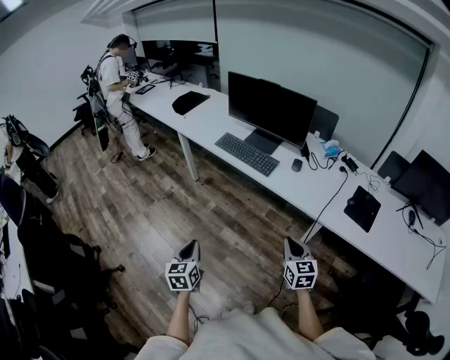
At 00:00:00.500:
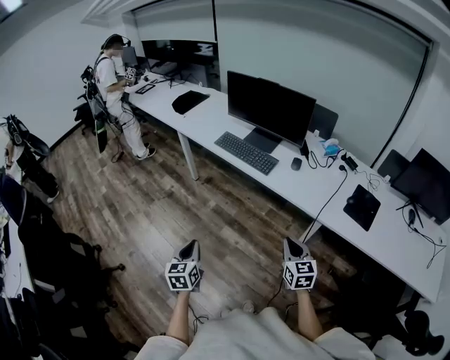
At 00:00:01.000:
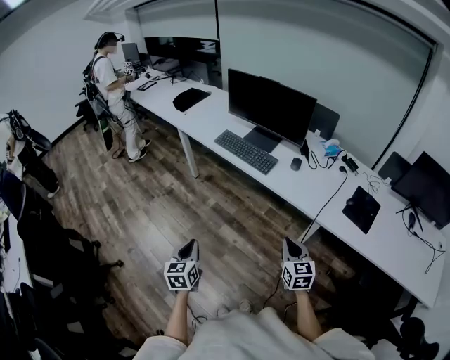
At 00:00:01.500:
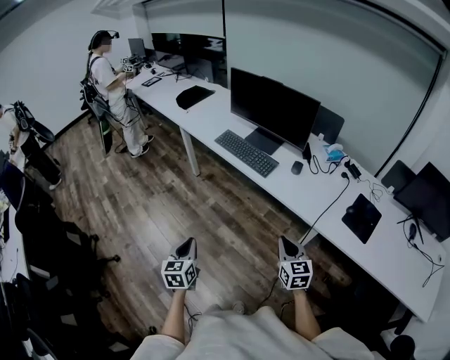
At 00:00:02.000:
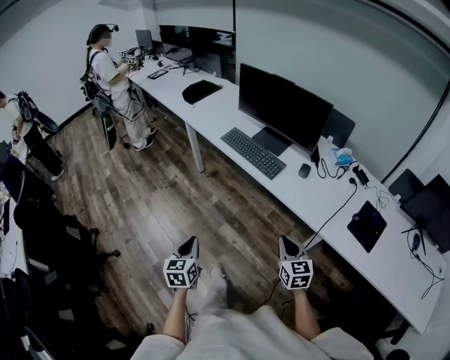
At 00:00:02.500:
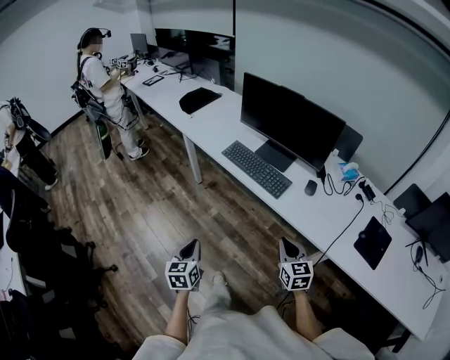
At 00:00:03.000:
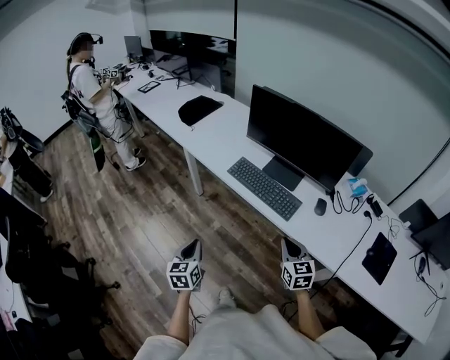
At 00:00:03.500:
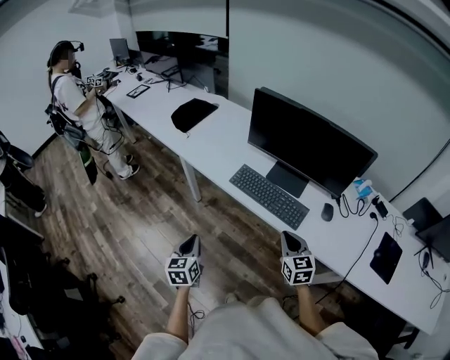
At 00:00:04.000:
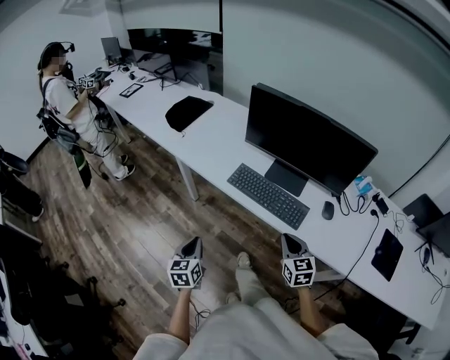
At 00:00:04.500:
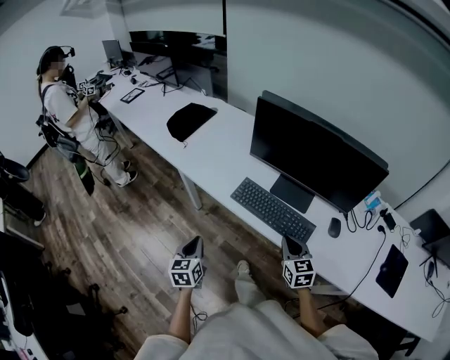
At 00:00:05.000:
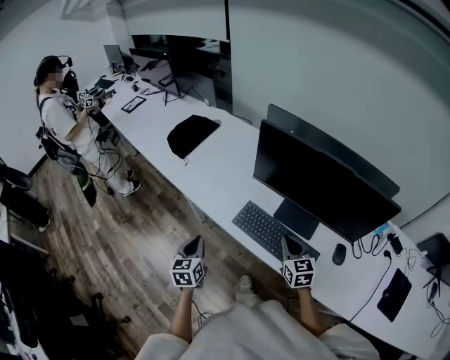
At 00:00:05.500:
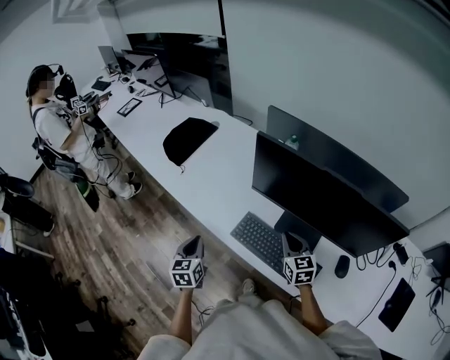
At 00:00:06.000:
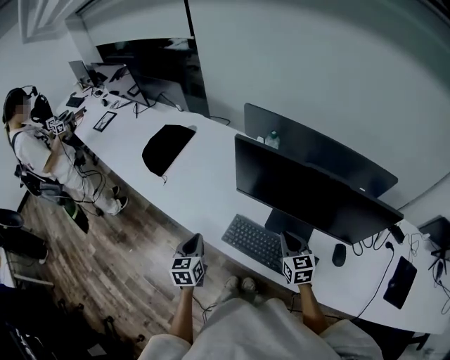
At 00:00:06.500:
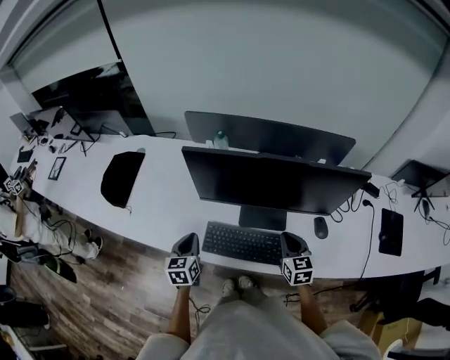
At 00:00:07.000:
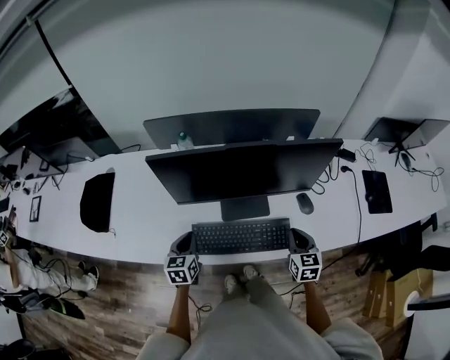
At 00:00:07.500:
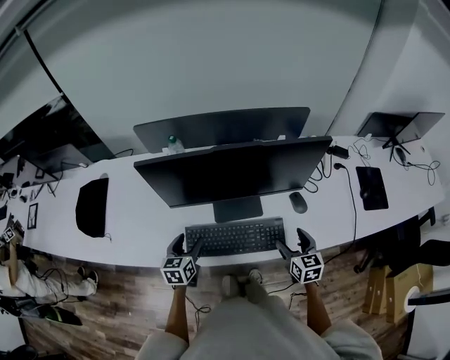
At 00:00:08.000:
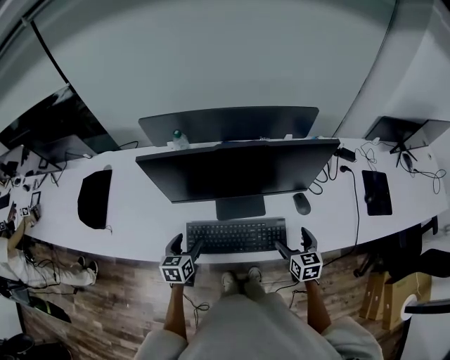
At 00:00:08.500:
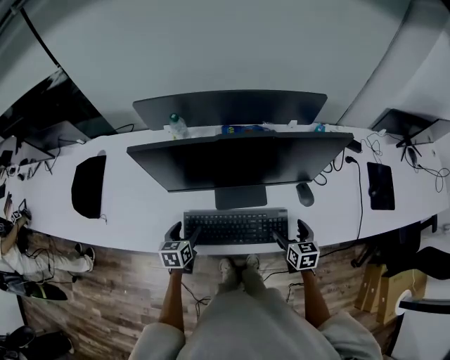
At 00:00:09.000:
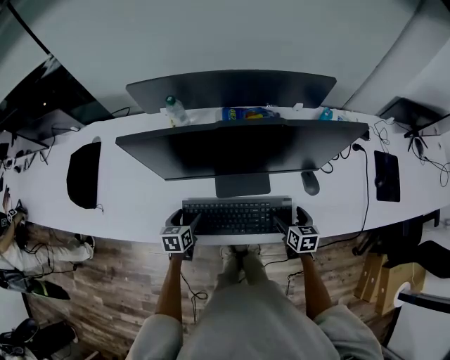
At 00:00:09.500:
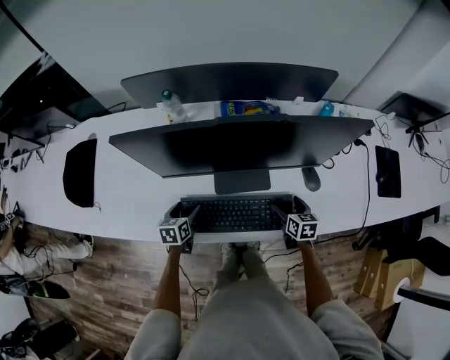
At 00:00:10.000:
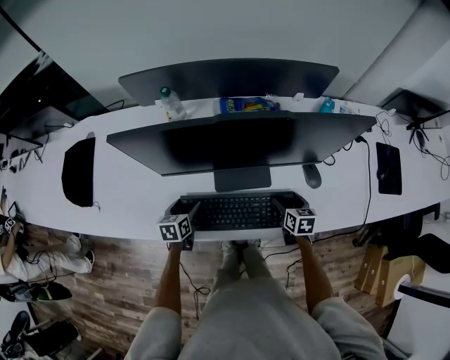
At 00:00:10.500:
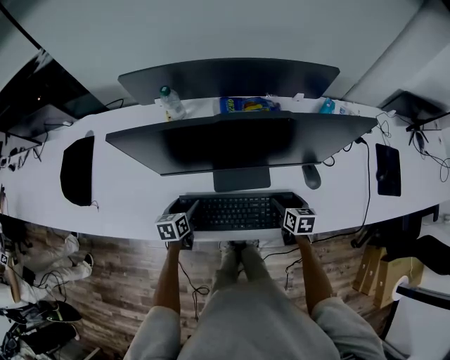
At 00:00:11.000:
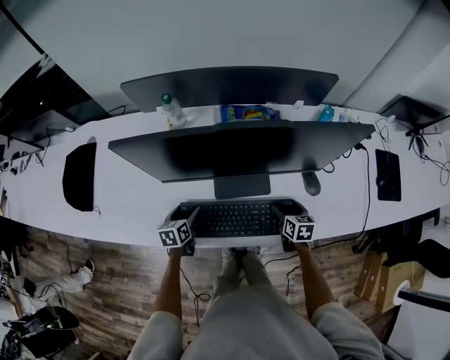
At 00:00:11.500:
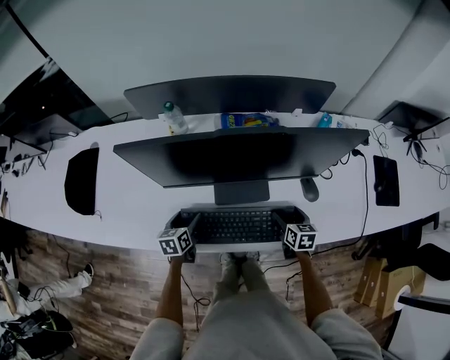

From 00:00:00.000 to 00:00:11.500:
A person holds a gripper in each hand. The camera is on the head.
From 00:00:00.000 to 00:00:02.000: The right gripper moves forward, roughly 5 cm. The left gripper moves about 5 cm.
From 00:00:02.000 to 00:00:04.000: Both grippers travel together forward, roughly 35 cm.
From 00:00:04.000 to 00:00:06.000: Both grippers travel together forward, about 30 cm.
From 00:00:06.000 to 00:00:07.500: The left gripper shifts by approximately 15 cm, rotates roughly 40 degrees, and opens up. Meanwhile the right gripper shifts by some 20 cm, changes its angle by approximately 40 degrees, and opens up.
From 00:00:07.500 to 00:00:09.500: The right gripper moves downward and forward, about 15 cm, and changes its angle by some 20 degrees. The left gripper shifts roughly 15 cm downward.
From 00:00:09.500 to 00:00:11.500: The grippers make only small movements.

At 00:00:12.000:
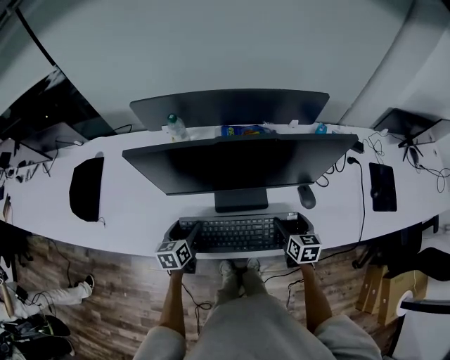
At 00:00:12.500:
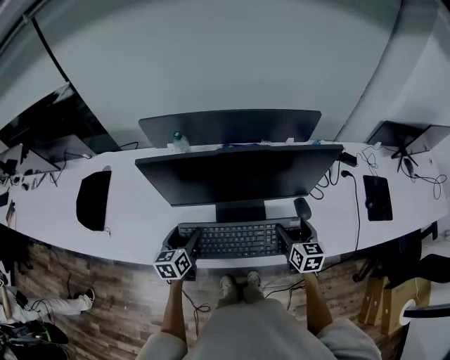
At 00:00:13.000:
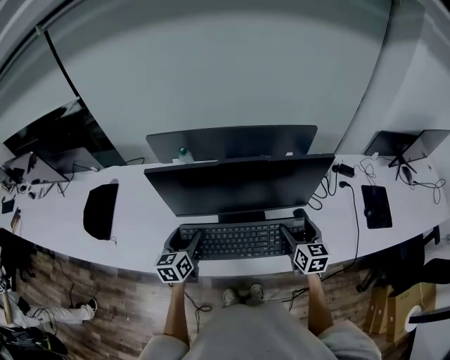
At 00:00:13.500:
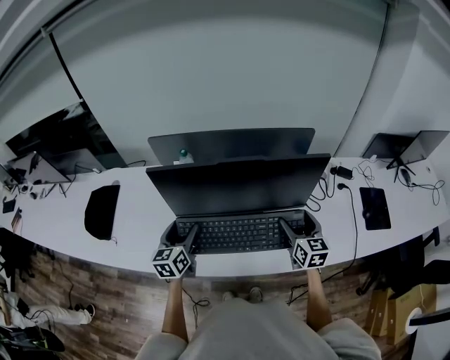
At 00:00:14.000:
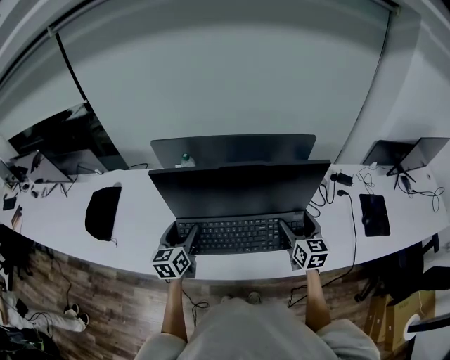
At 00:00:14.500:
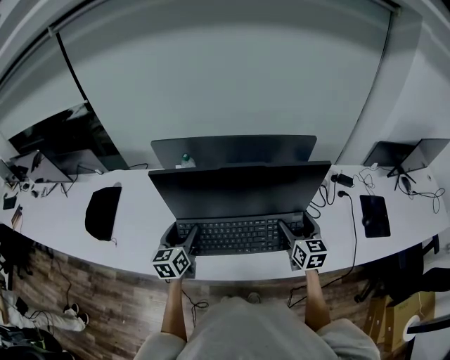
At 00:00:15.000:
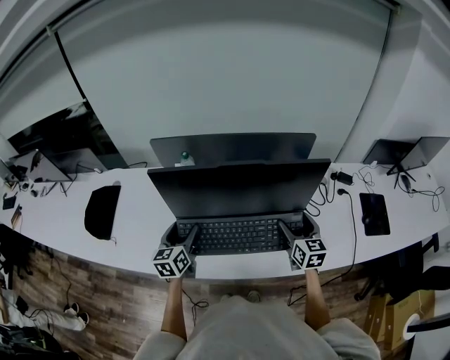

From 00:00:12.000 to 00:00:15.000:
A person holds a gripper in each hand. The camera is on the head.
From 00:00:12.000 to 00:00:13.500: The two grippers go some 15 cm upward. The left gripper changes its angle by approximately 20 degrees. The right gripper swivels about 20 degrees.
From 00:00:13.500 to 00:00:15.000: Neither gripper changes place.

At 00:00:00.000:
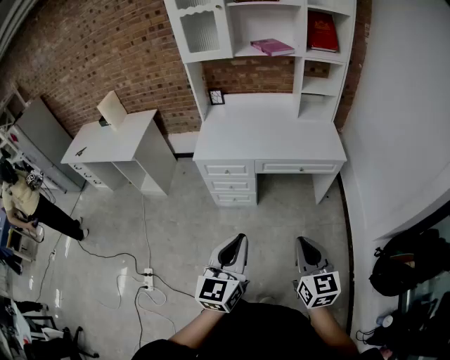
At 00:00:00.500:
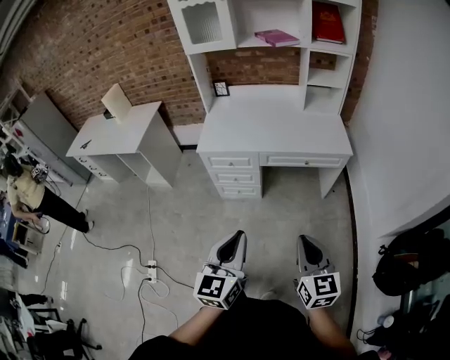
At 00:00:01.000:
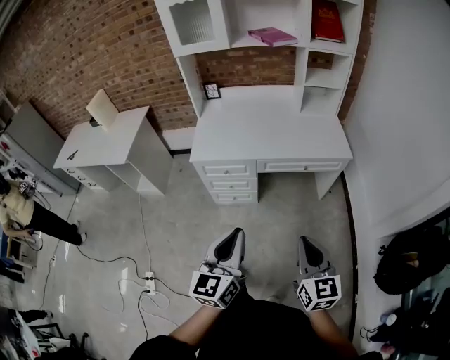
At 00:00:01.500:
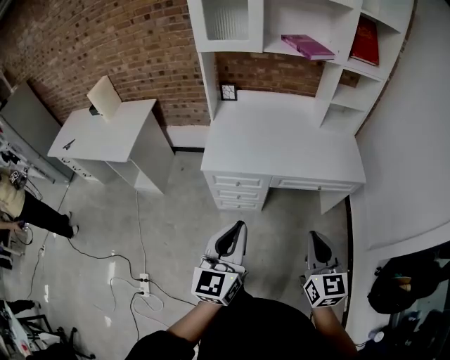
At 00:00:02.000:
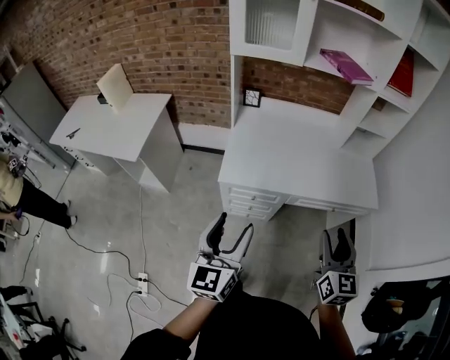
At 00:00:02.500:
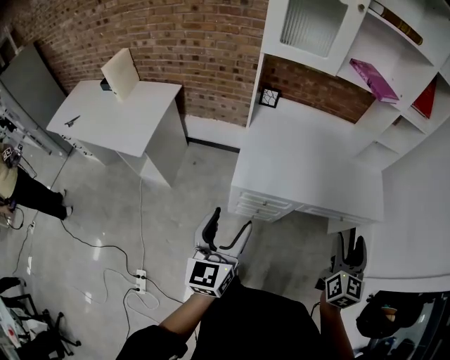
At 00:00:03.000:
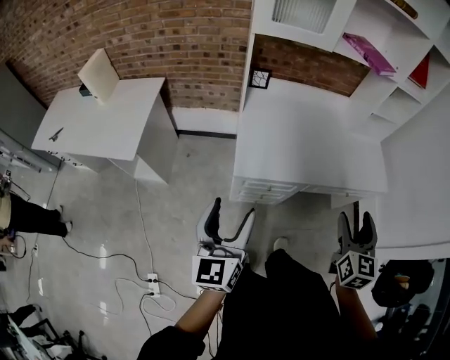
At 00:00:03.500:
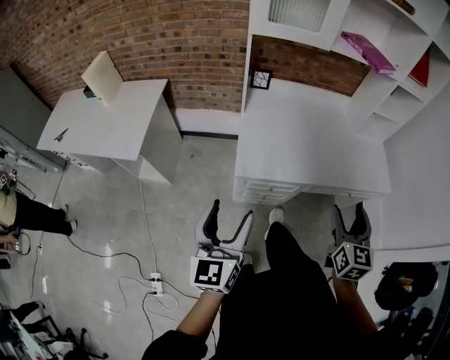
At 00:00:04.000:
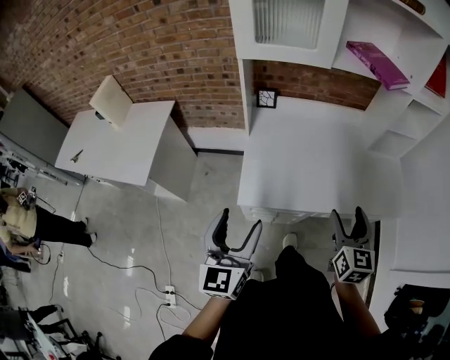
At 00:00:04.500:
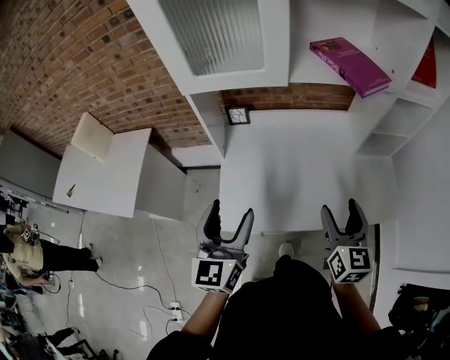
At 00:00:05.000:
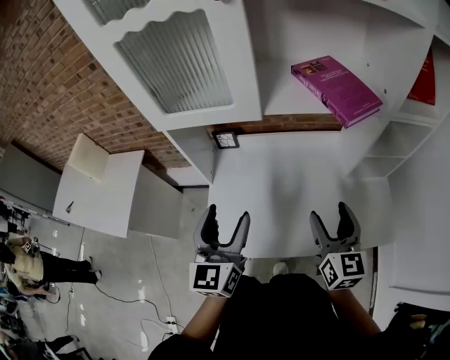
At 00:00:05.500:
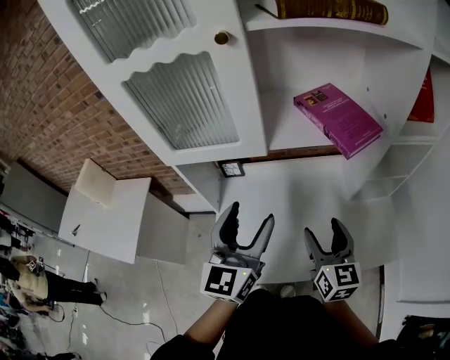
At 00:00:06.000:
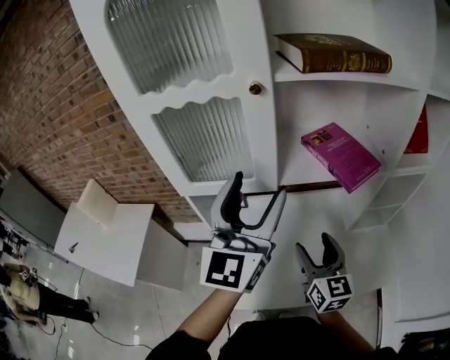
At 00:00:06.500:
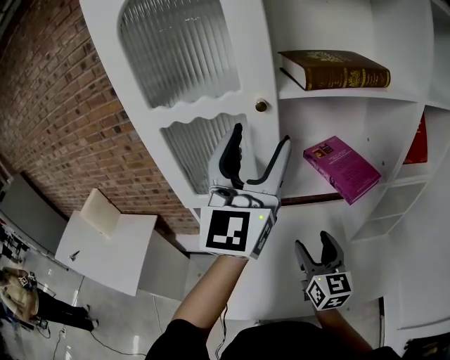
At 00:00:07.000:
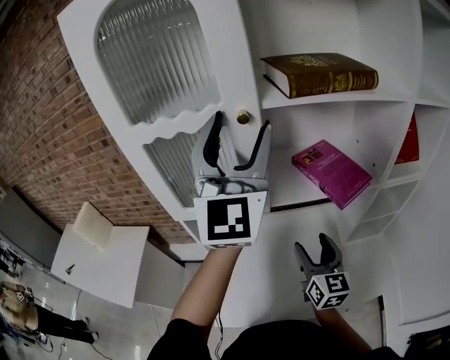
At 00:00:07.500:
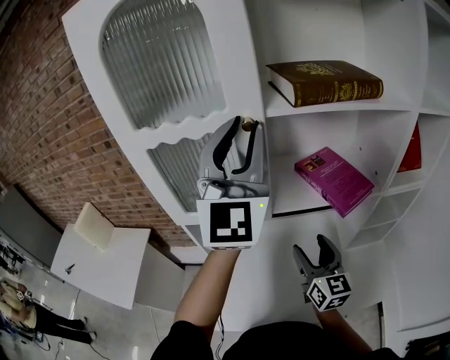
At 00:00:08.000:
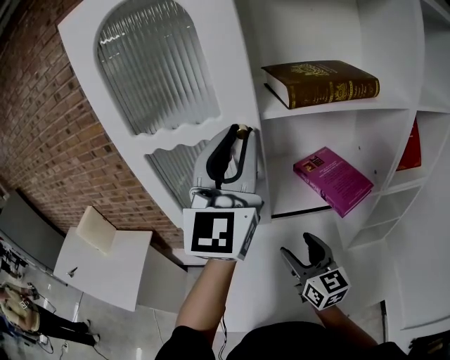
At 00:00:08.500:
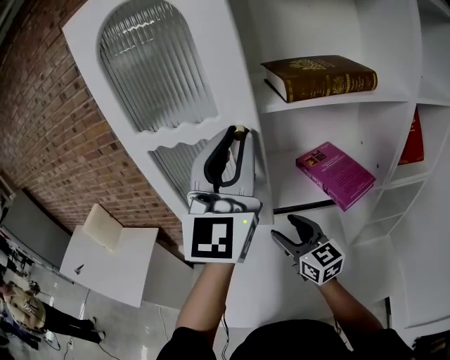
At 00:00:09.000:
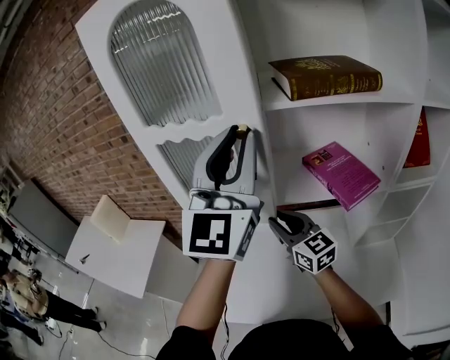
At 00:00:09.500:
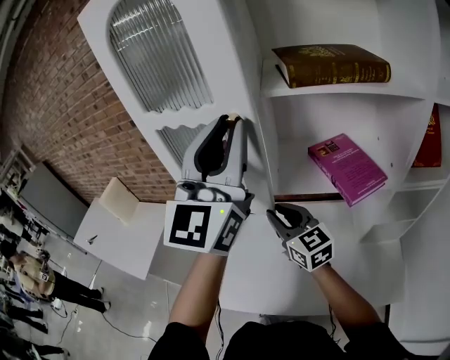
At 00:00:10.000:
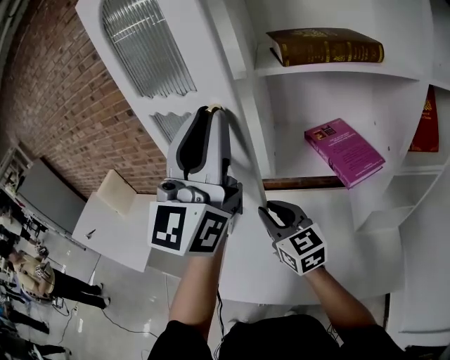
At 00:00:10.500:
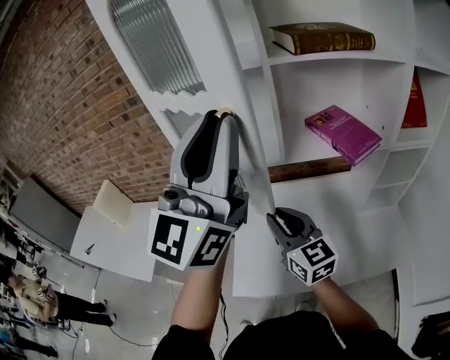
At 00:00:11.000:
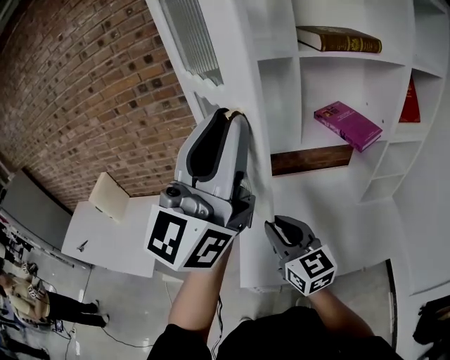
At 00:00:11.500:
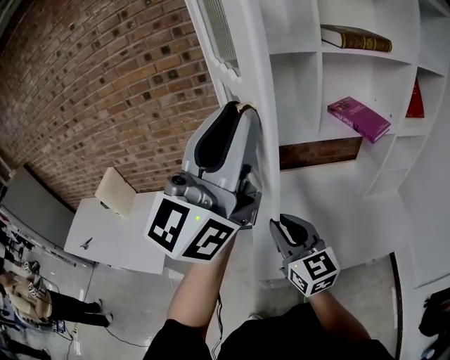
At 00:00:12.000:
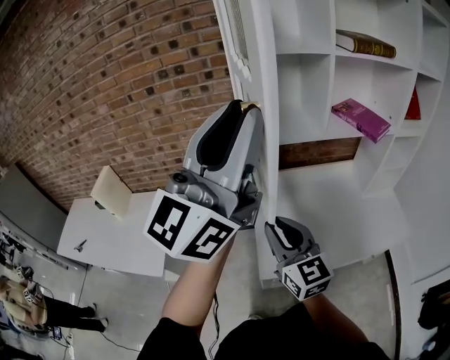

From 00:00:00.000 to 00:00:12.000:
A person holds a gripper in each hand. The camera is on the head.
From 00:00:00.000 to 00:00:02.000: The grippers both shift forward and to the left by roughly 40 cm. The left gripper opens up, while the right gripper opens its fingers.
From 00:00:02.000 to 00:00:04.000: The right gripper shifts roughly 20 cm forward, and opens up. The left gripper travels forward and to the left by approximately 20 cm.
From 00:00:04.000 to 00:00:06.000: The left gripper heads forward, upward and to the right, covering roughly 50 cm, and turns by roughly 30 degrees, while the right gripper moves forward and upward, about 30 cm.
From 00:00:06.000 to 00:00:08.000: The left gripper travels upward and forward by approximately 15 cm, and closes up, while the right gripper shifts approximately 5 cm forward.
From 00:00:08.000 to 00:00:10.000: The right gripper moves to the left, roughly 10 cm, rotates approximately 20 degrees, and closes. Meanwhile the left gripper heads backward, covering some 10 cm.
From 00:00:10.000 to 00:00:12.000: Both grippers move to the left and backward, approximately 30 cm. The left gripper swivels approximately 30 degrees.
